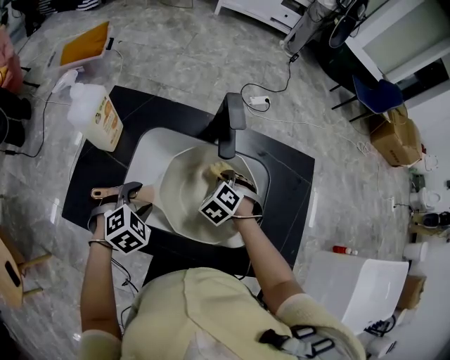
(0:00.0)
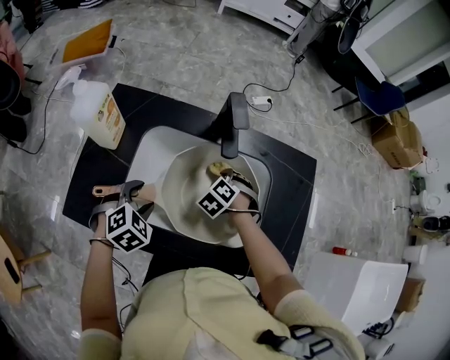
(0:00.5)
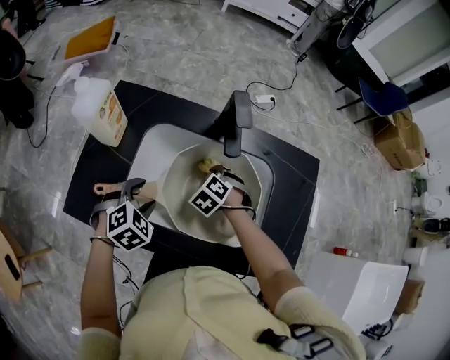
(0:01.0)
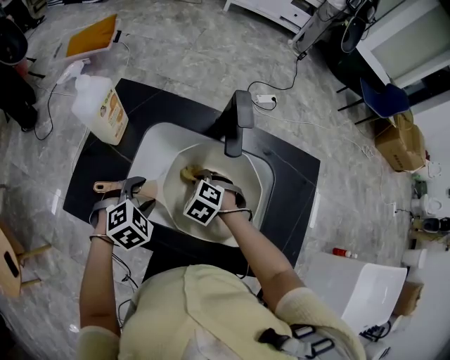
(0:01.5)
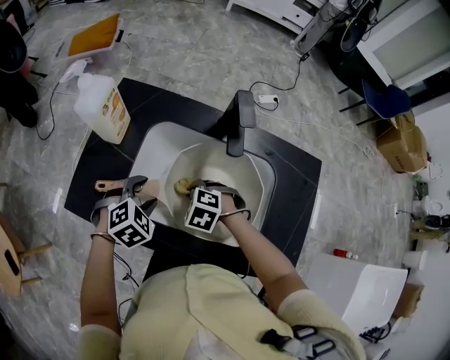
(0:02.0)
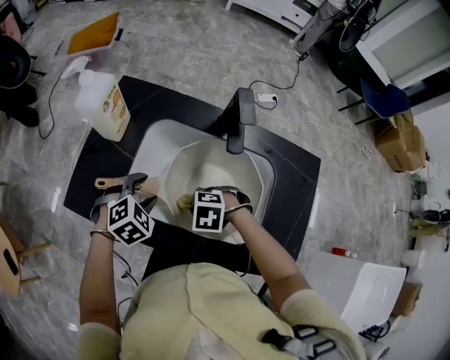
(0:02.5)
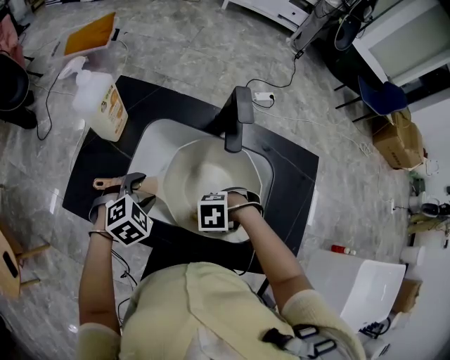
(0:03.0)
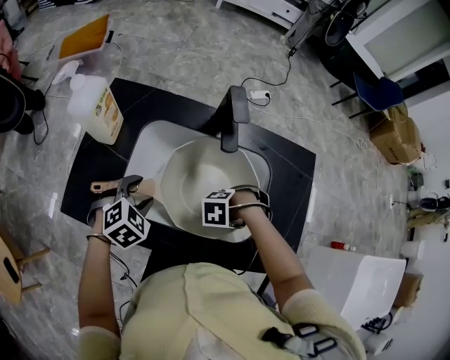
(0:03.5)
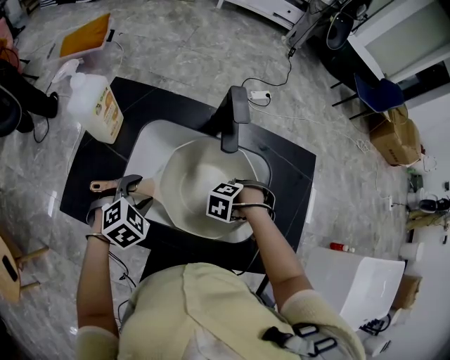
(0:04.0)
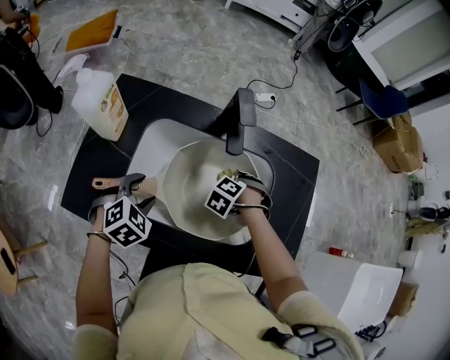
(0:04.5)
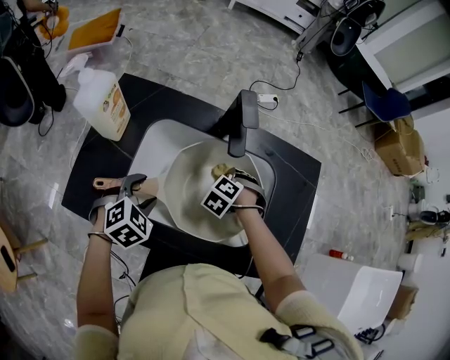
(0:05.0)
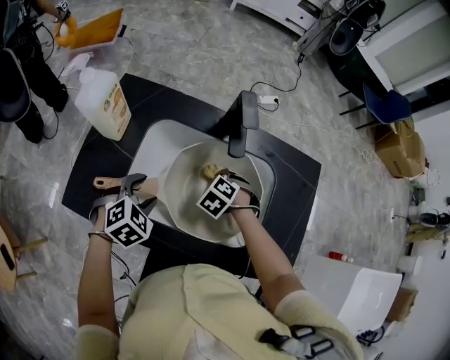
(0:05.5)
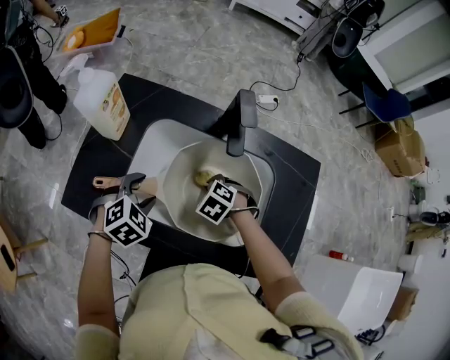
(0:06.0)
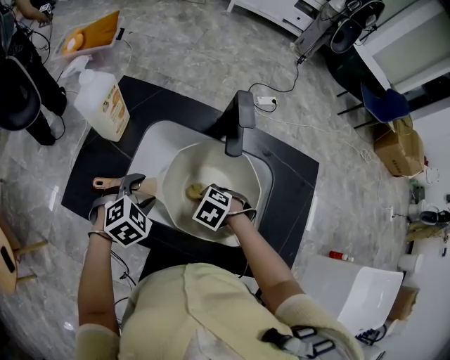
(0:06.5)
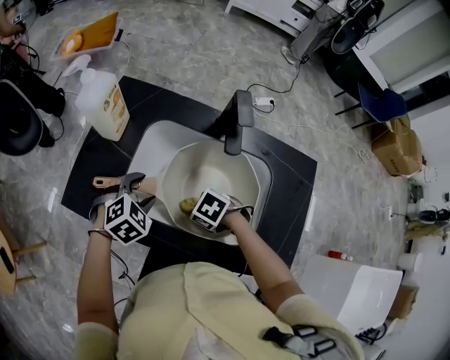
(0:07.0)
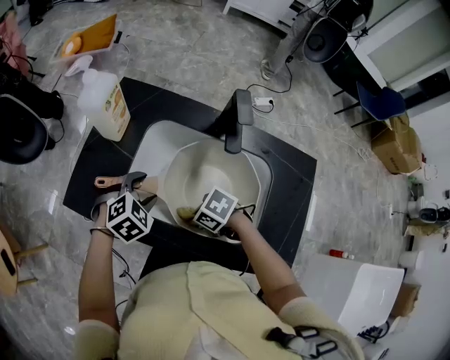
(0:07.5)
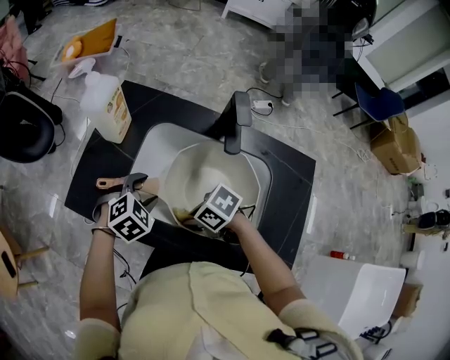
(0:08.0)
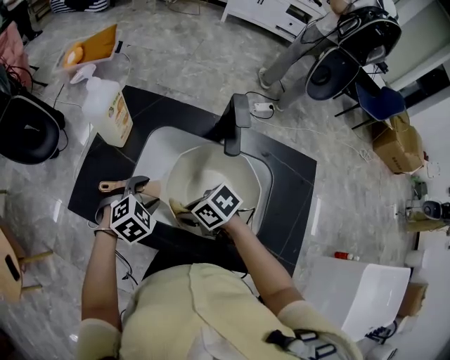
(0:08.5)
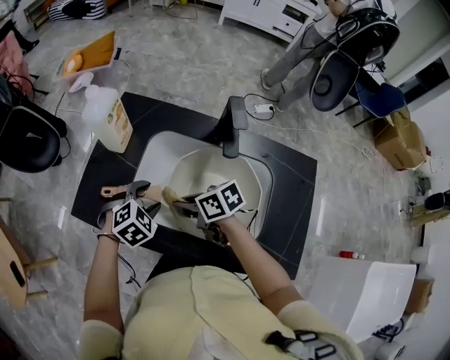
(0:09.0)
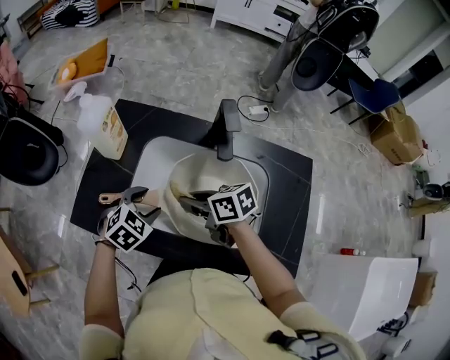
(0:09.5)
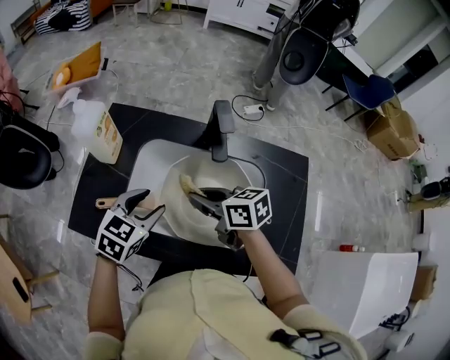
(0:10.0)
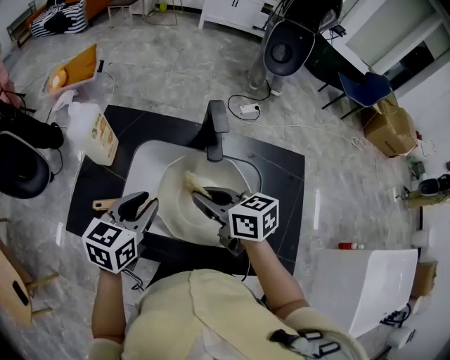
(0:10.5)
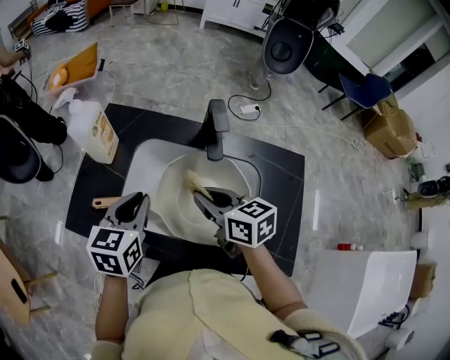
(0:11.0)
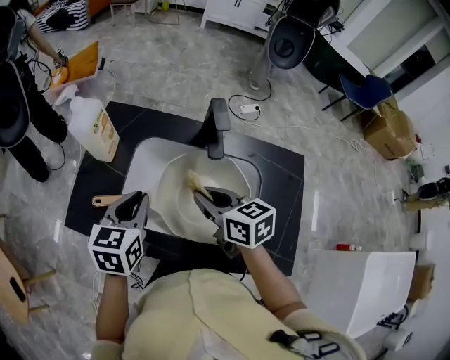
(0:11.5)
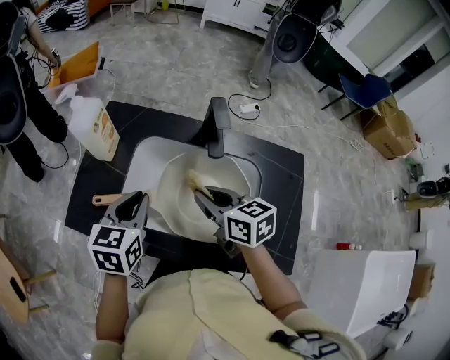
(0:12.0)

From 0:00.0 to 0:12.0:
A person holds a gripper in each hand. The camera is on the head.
From 0:00.0 to 0:02.0: The right gripper ends up roughly 15 cm from where it was, and changes its angle by roughly 30 degrees.
From 0:02.0 to 0:04.0: The right gripper moves about 15 cm, and turns by about 40 degrees.
From 0:04.0 to 0:06.0: The right gripper changes place by approximately 10 cm, and changes its angle by some 30 degrees.
From 0:06.0 to 0:08.0: The right gripper ends up approximately 15 cm from where it was, and rotates some 50 degrees.
From 0:08.0 to 0:10.0: The left gripper moves upward, approximately 10 cm, and swivels roughly 30 degrees; the right gripper shifts by about 15 cm, and swivels approximately 50 degrees.
From 0:10.0 to 0:12.0: The left gripper changes place by roughly 5 cm, turns by some 30 degrees, and closes.

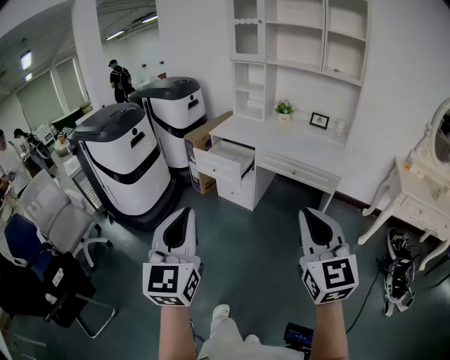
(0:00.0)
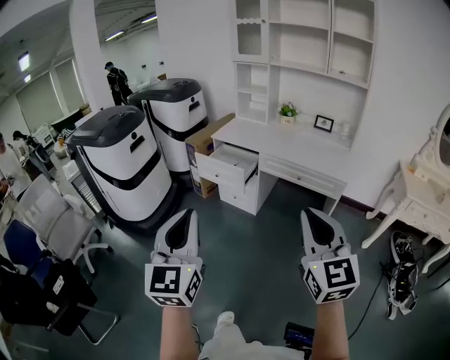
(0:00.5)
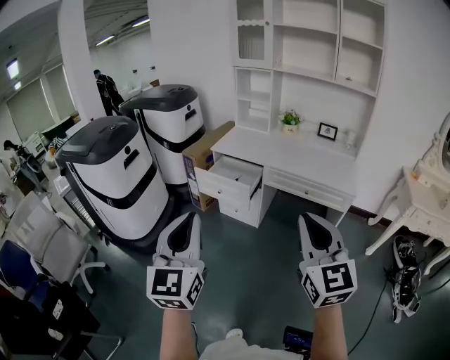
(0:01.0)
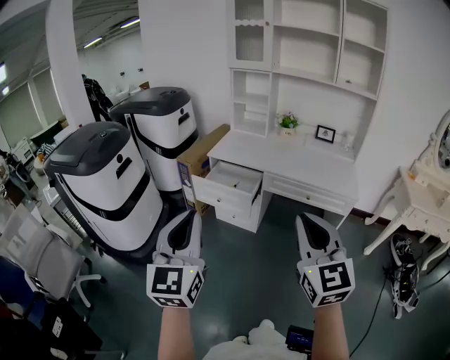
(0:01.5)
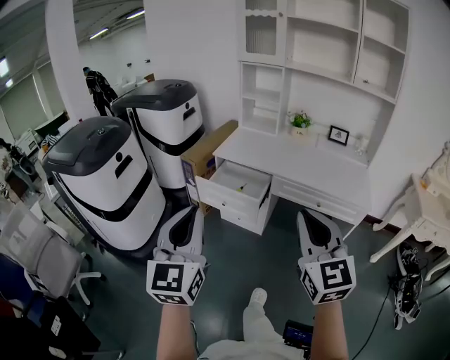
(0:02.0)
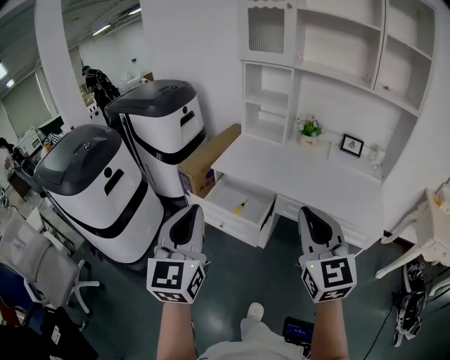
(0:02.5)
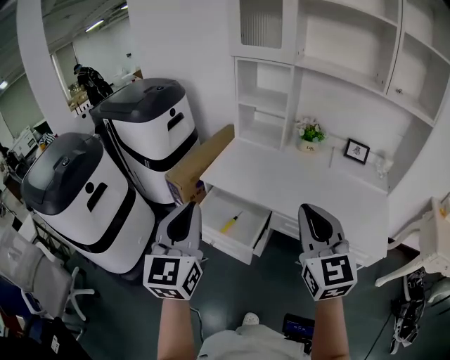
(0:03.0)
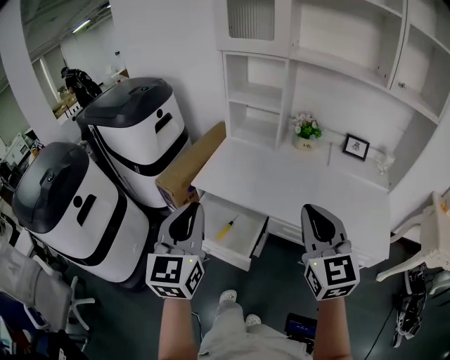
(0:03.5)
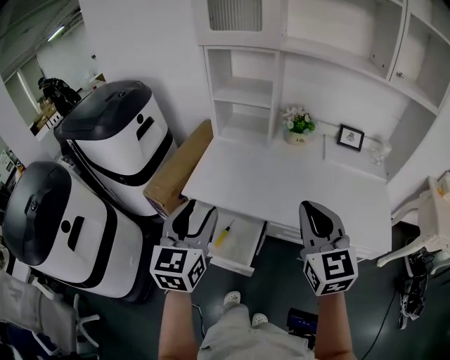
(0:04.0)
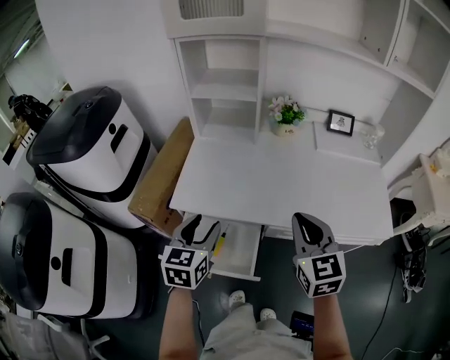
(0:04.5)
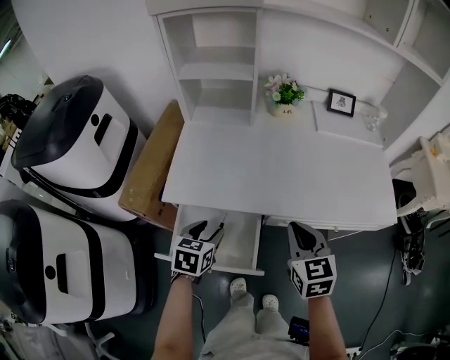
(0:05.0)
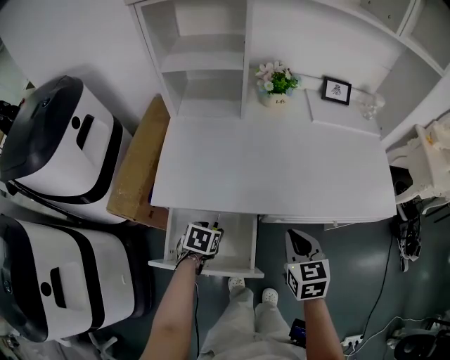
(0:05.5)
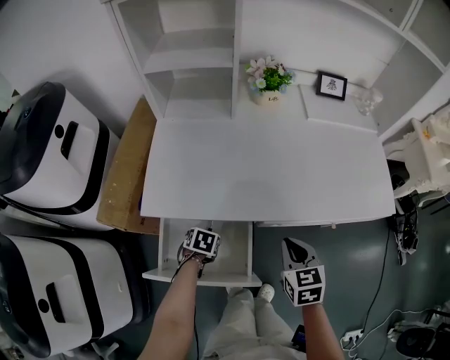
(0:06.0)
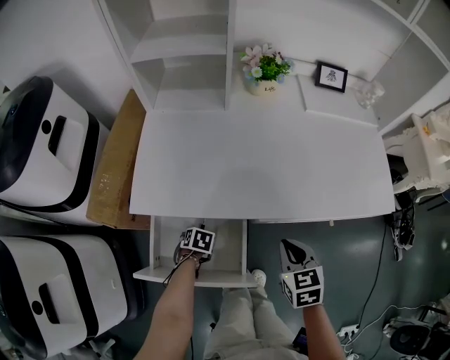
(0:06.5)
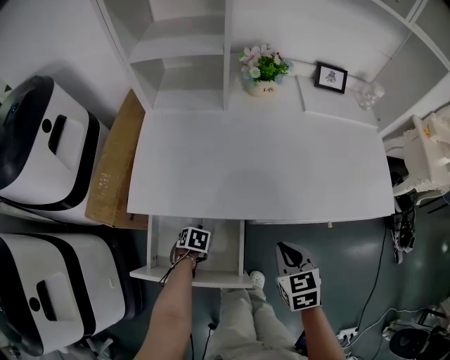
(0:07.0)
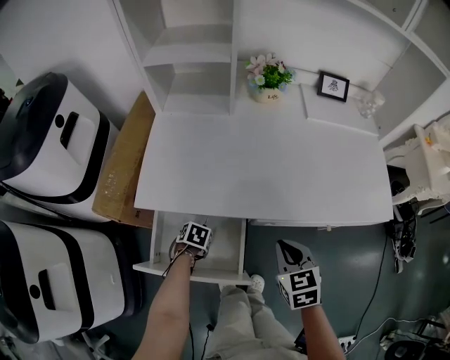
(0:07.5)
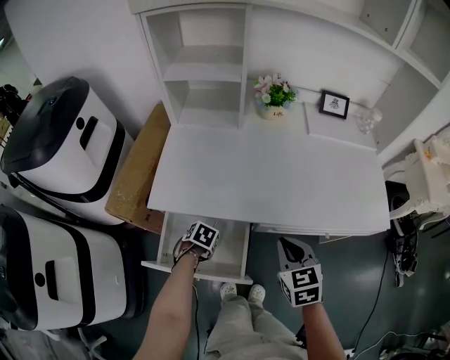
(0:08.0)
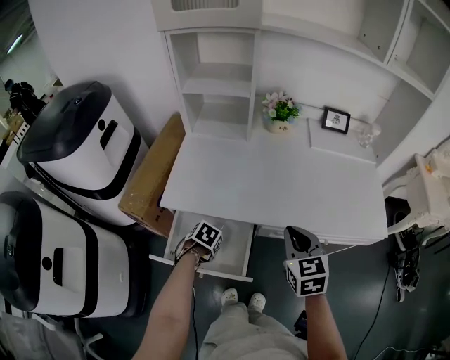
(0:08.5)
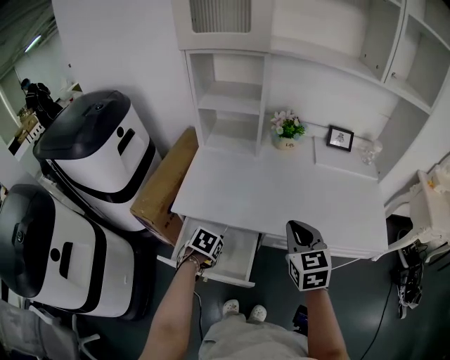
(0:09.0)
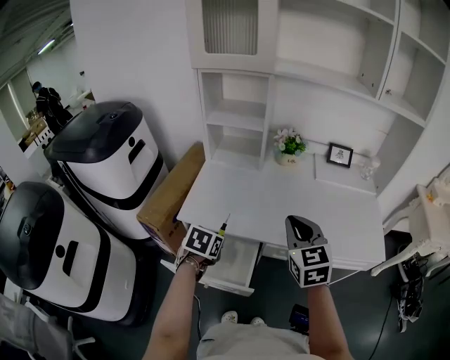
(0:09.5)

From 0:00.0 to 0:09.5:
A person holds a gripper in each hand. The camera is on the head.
From 0:00.0 to 0:02.0: The right gripper goes about 35 cm forward and to the left; the left gripper heads forward, covering about 35 cm.
From 0:02.0 to 0:04.0: The pair of grippers is taken forward, about 40 cm. The left gripper swivels some 20 degrees, and opens its fingers.
From 0:04.0 to 0:05.5: The left gripper shifts roughly 35 cm downward, and tips its fingers downward by about 50 degrees. Meanwhile the right gripper travels downward by about 25 cm, and swivels approximately 40 degrees.
From 0:05.5 to 0:07.5: The left gripper is displaced downward by approximately 10 cm, and closes up.
From 0:07.5 to 0:09.5: The two grippers go approximately 25 cm upward. The left gripper rotates about 30 degrees, while the right gripper changes its angle by some 30 degrees.

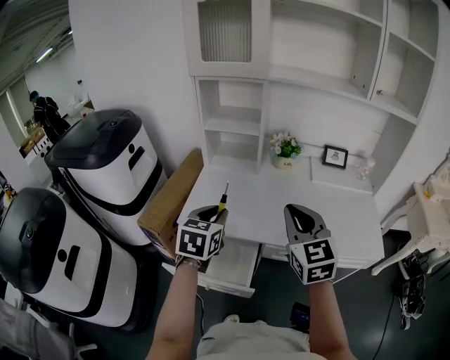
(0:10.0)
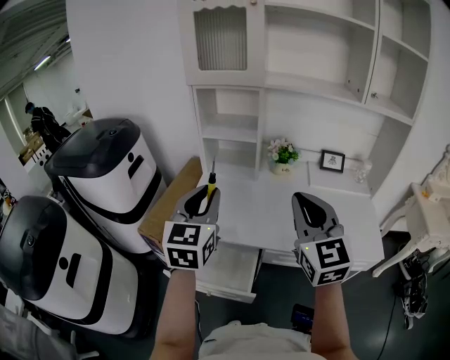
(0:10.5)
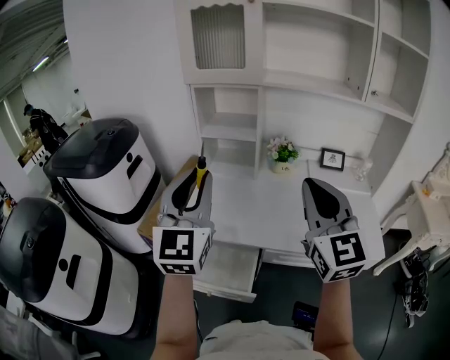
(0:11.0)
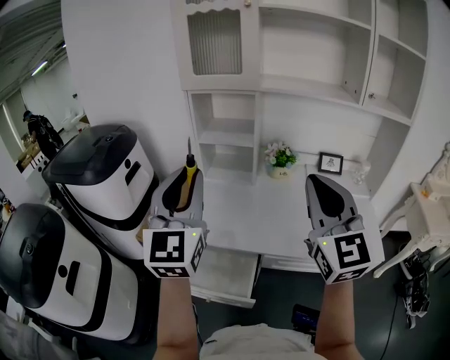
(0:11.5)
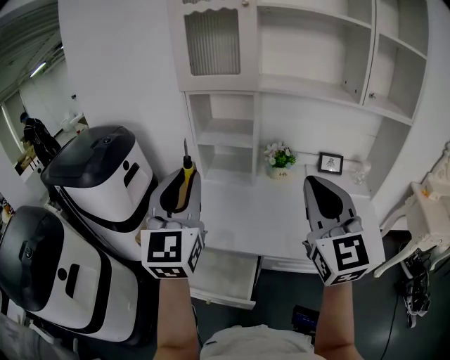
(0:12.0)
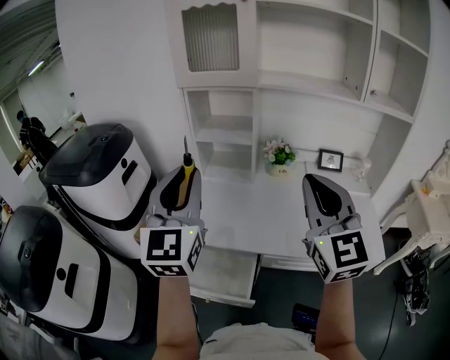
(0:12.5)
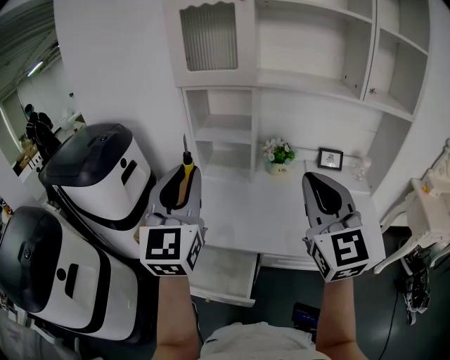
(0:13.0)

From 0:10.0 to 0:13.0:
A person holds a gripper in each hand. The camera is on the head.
From 0:10.0 to 0:11.5: The left gripper travels upward by approximately 25 cm, and points its fingers some 40 degrees further upward. The right gripper travels upward by approximately 15 cm, and changes its angle by roughly 20 degrees.
From 0:11.5 to 0:13.0: There are only small adjustments of the grippers.

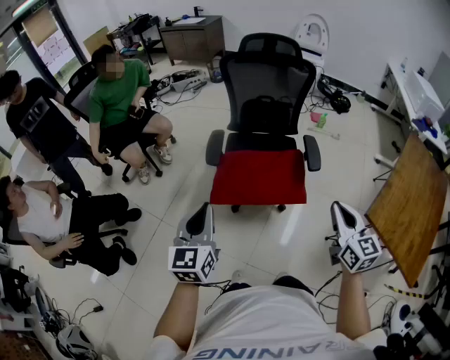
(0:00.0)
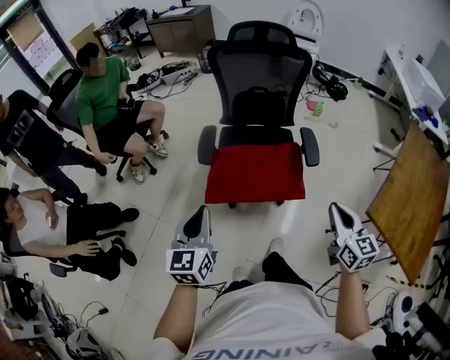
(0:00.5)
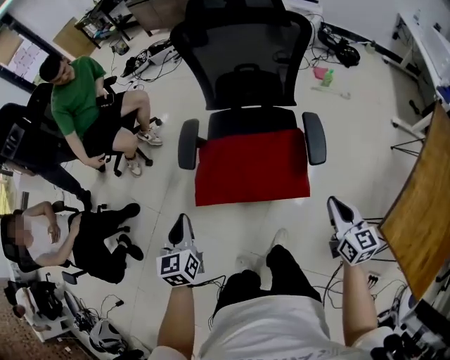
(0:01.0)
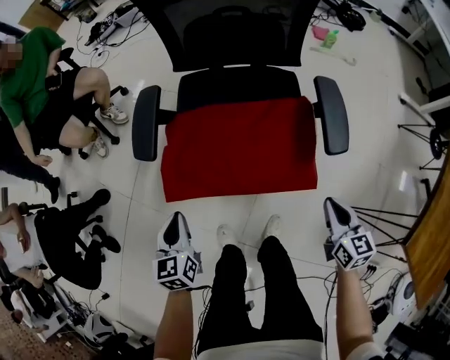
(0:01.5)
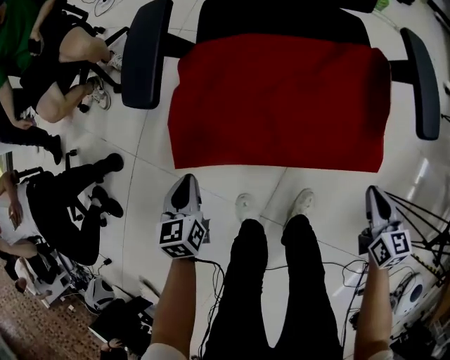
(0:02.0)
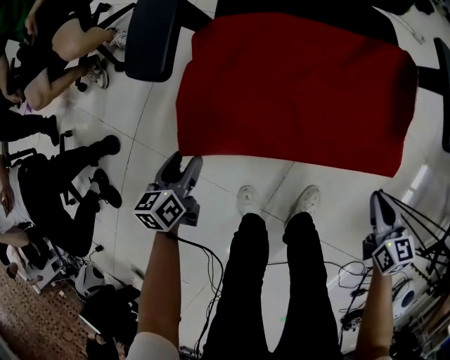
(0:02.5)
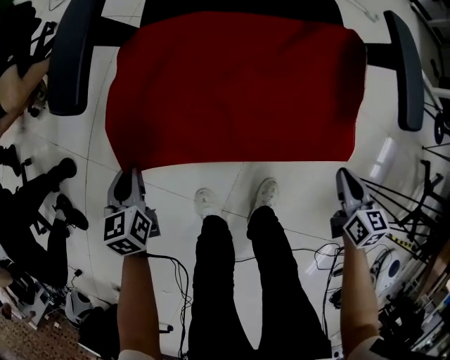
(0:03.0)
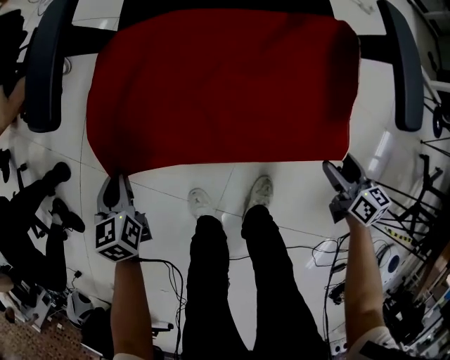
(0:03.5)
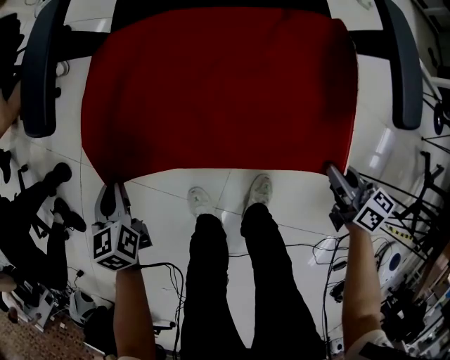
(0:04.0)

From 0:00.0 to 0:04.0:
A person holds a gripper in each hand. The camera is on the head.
From 0:00.0 to 0:02.0: The grippers both shift downward by about 50 cm. The right gripper changes its angle by some 30 degrees. Meanwhile the left gripper tilts its fingers about 30 degrees downward.
From 0:02.0 to 0:04.0: The right gripper changes its angle by about 30 degrees, and opens and closes again. The left gripper opens, then closes once more.
